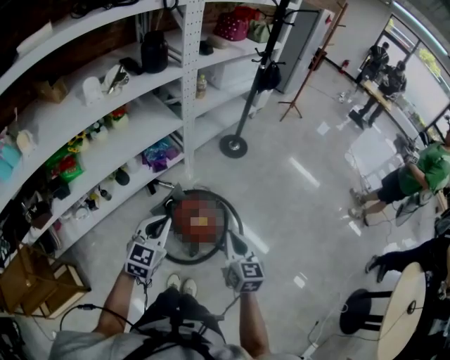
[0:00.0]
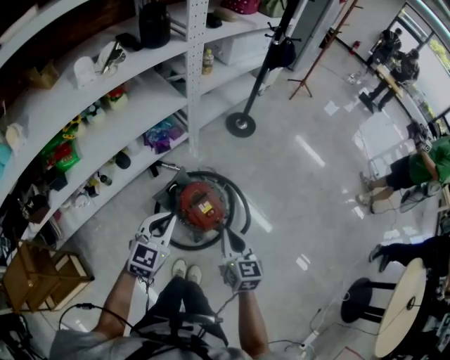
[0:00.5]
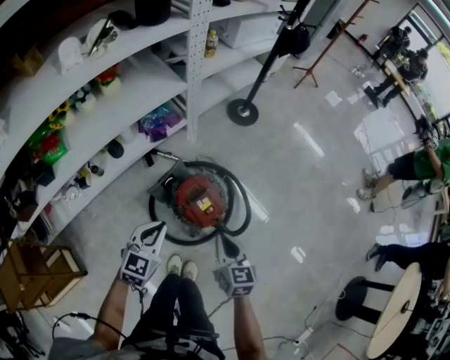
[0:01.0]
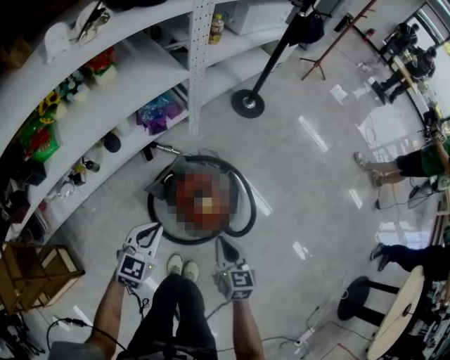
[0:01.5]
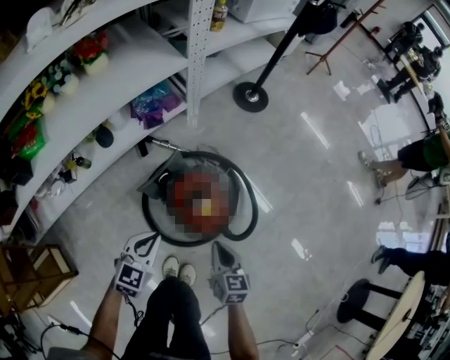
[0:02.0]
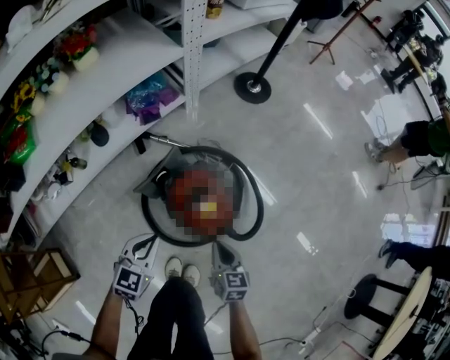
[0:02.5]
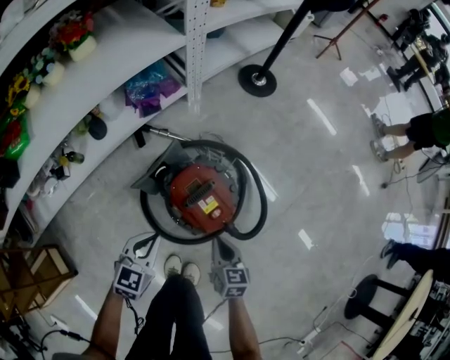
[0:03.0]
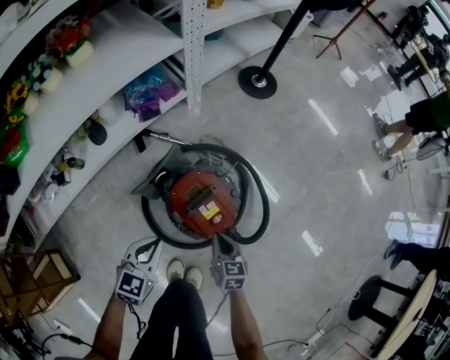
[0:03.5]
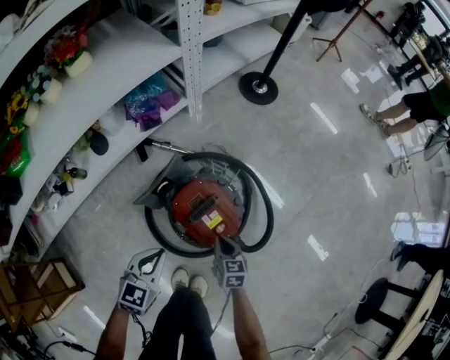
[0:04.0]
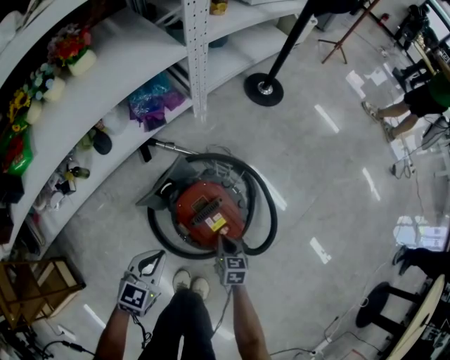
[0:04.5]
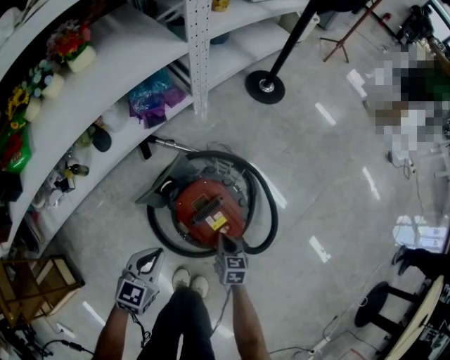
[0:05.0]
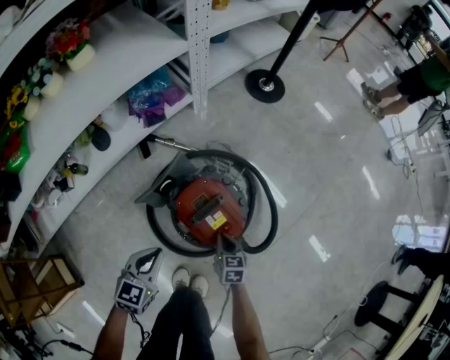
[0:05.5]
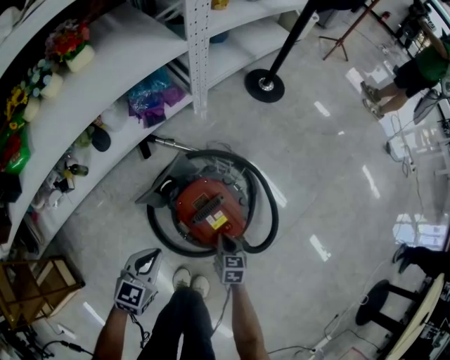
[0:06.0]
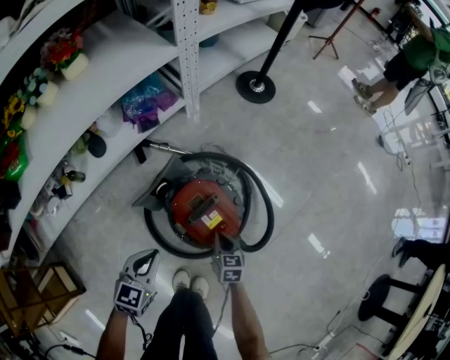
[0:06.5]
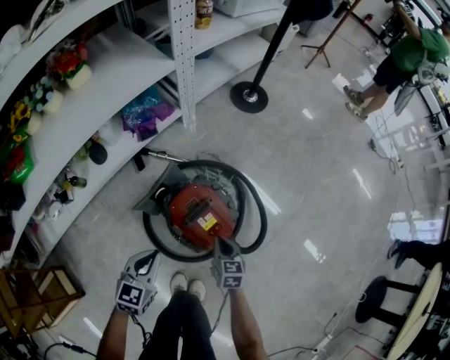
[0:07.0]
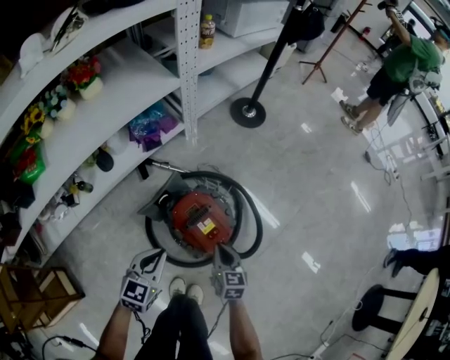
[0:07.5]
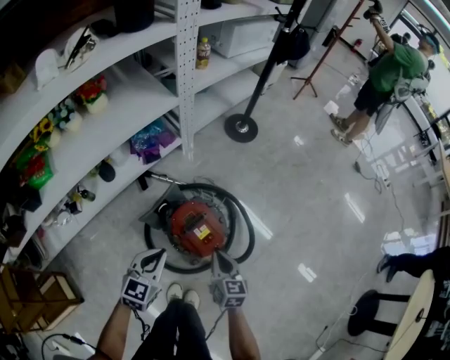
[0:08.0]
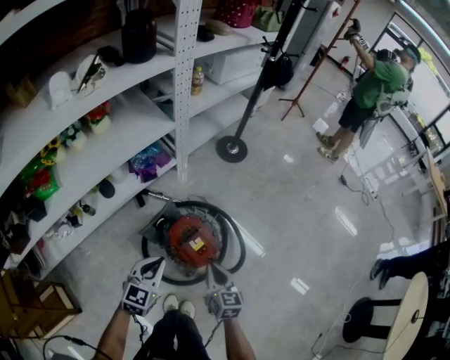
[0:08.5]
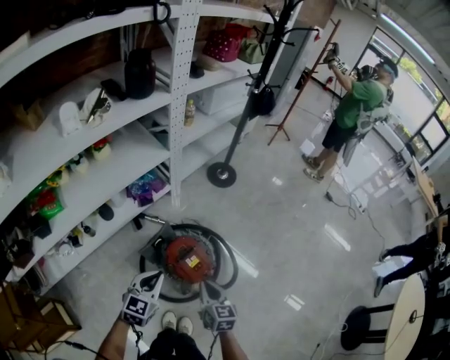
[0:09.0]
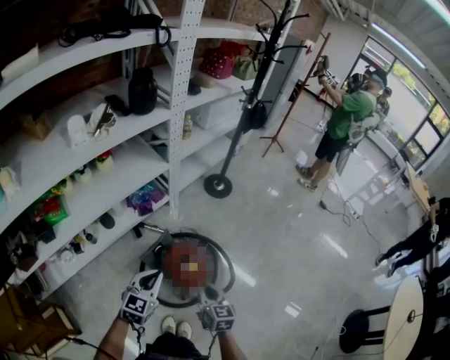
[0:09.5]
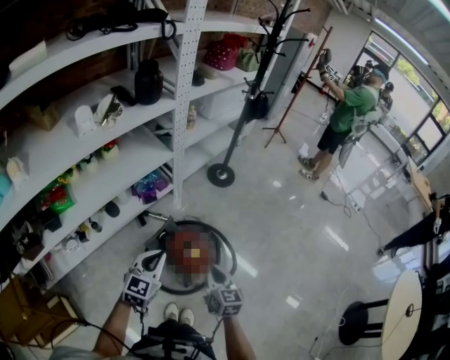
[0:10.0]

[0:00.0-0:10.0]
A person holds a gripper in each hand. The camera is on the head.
0:00.0 to 0:02.0: Both grippers move downward, roughly 30 cm.
0:02.0 to 0:04.0: The left gripper is displaced downward by approximately 10 cm. Meanwhile the right gripper goes approximately 20 cm downward.
0:04.0 to 0:06.0: The grippers move only a little.
0:06.0 to 0:08.0: The left gripper is displaced upward by about 15 cm, while the right gripper heads upward, covering some 25 cm.
0:08.0 to 0:10.0: The grippers both shift upward by some 20 cm.

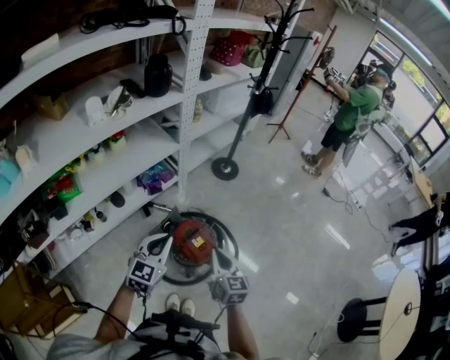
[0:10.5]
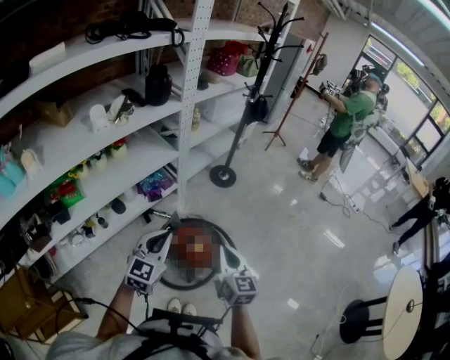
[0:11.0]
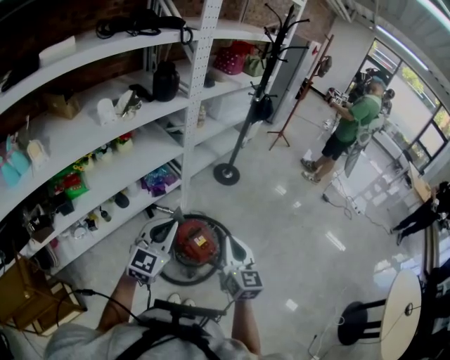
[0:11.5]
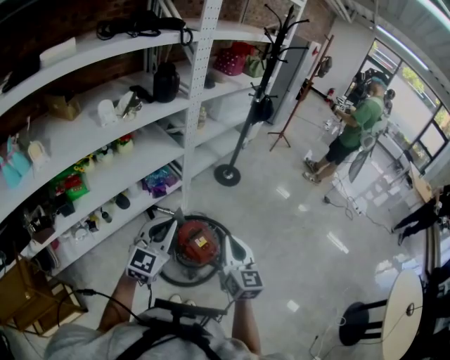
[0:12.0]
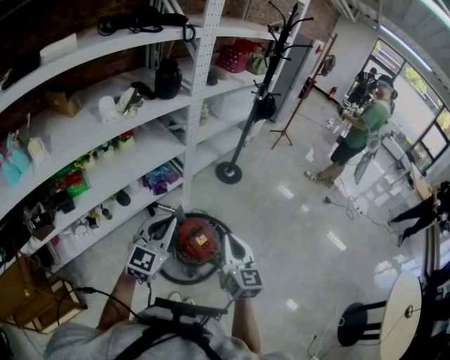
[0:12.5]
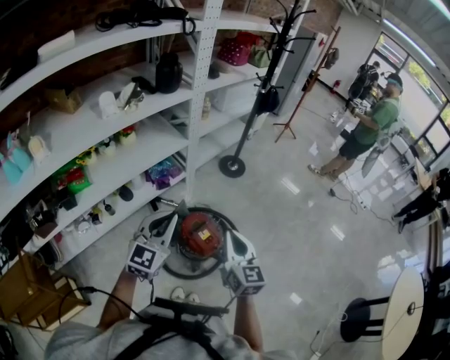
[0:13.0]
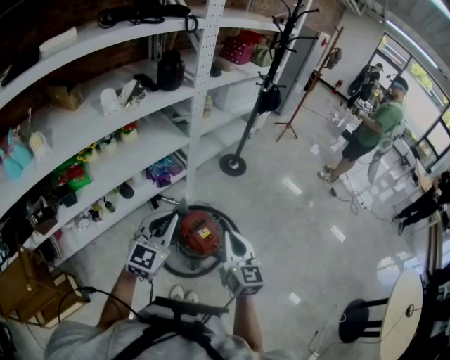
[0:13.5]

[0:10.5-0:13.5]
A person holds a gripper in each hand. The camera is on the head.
0:10.5 to 0:12.0: Both grippers move upward, roughly 10 cm.
0:12.0 to 0:13.5: The grippers make only small movements.

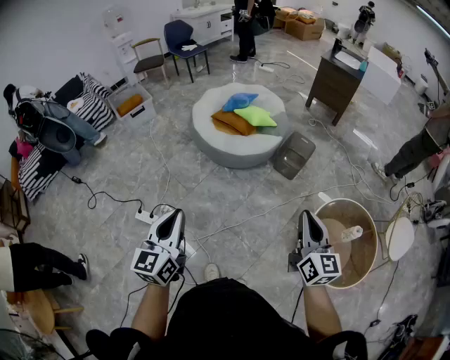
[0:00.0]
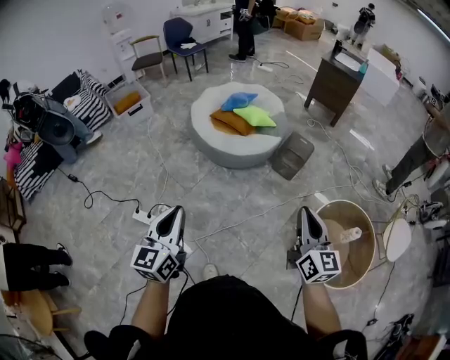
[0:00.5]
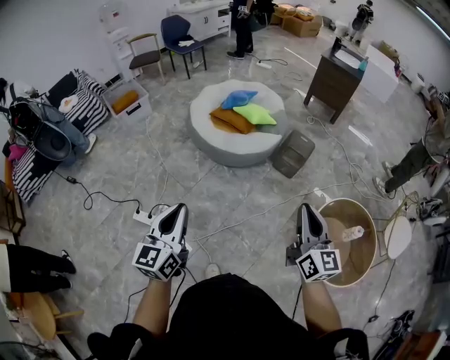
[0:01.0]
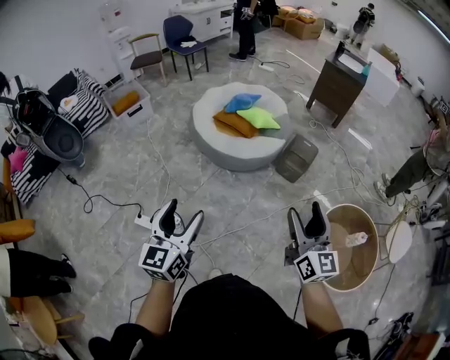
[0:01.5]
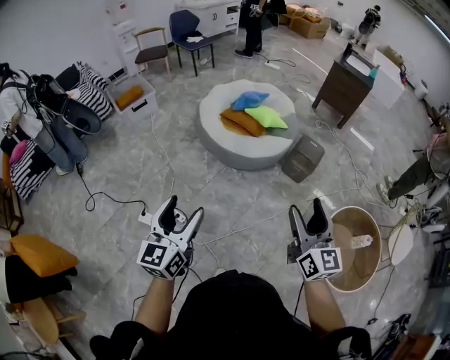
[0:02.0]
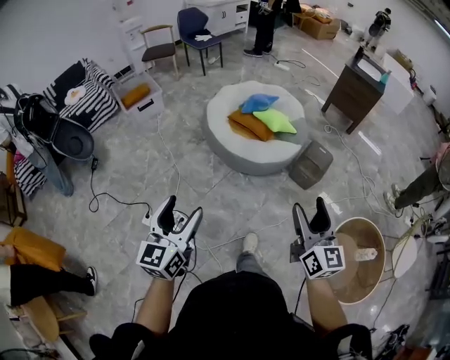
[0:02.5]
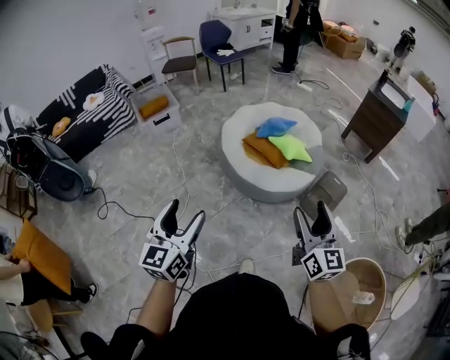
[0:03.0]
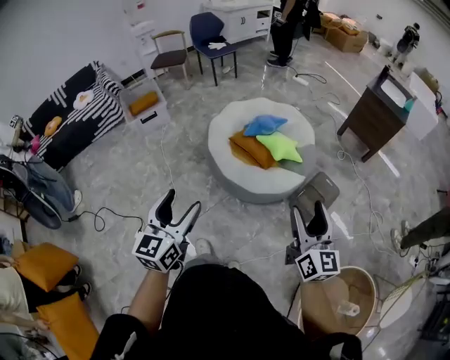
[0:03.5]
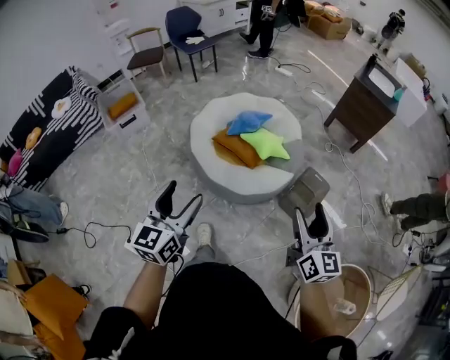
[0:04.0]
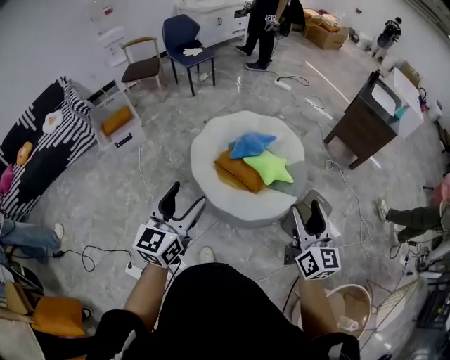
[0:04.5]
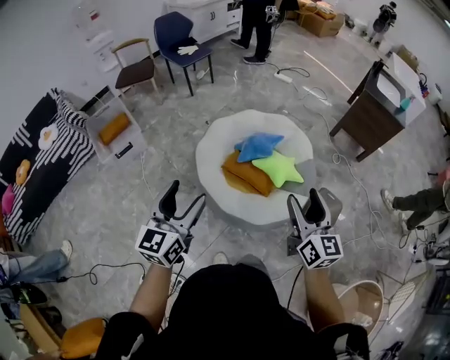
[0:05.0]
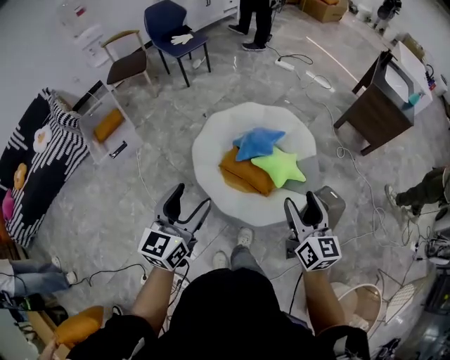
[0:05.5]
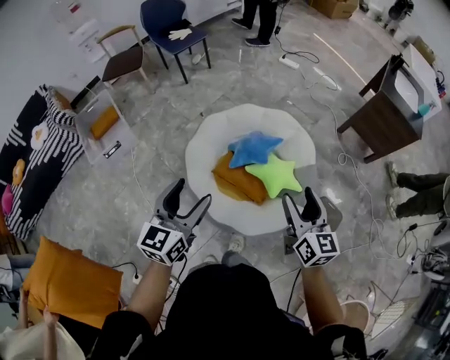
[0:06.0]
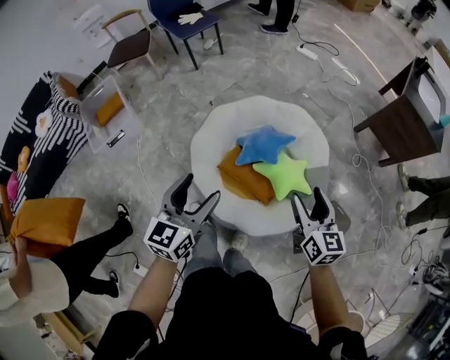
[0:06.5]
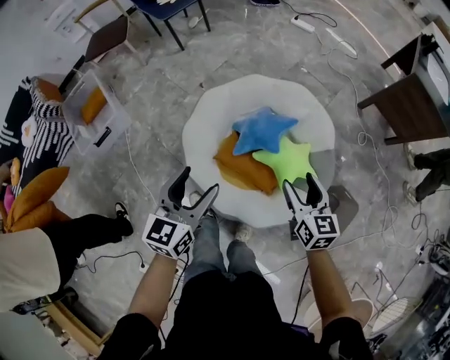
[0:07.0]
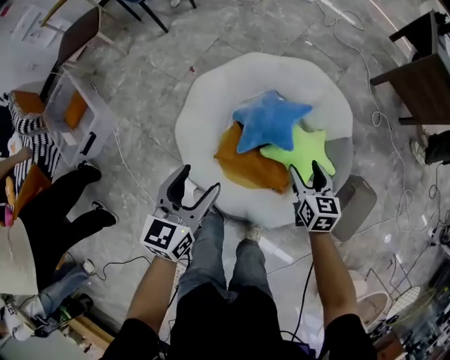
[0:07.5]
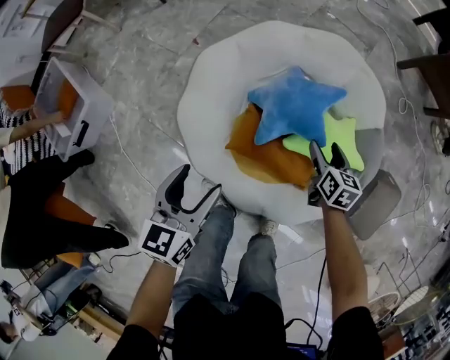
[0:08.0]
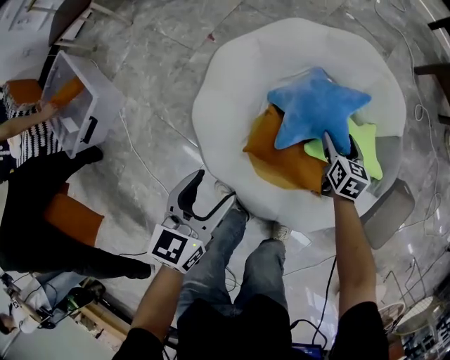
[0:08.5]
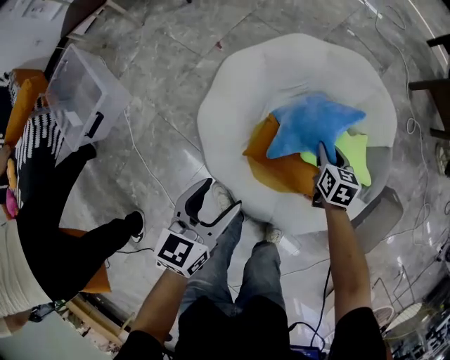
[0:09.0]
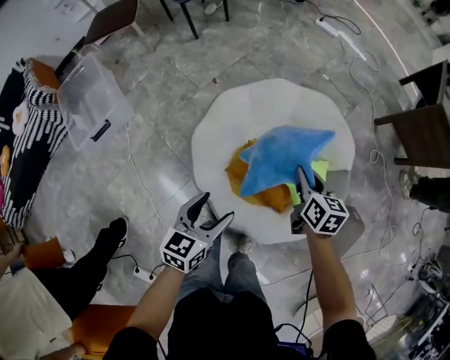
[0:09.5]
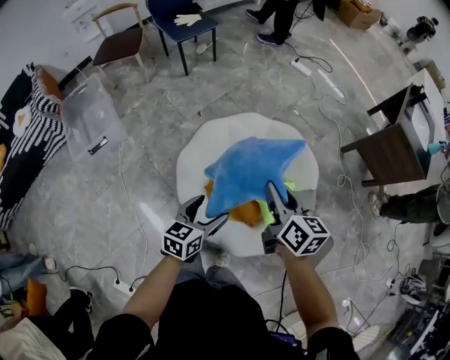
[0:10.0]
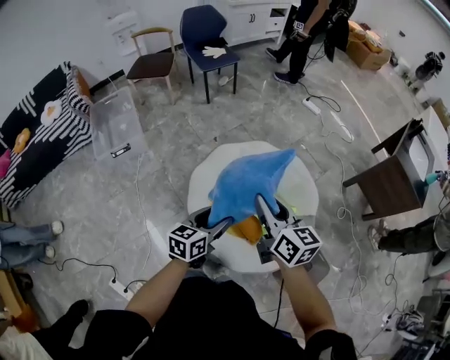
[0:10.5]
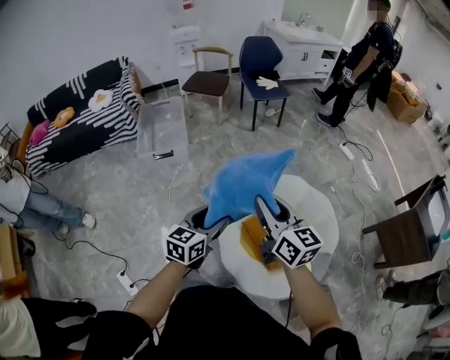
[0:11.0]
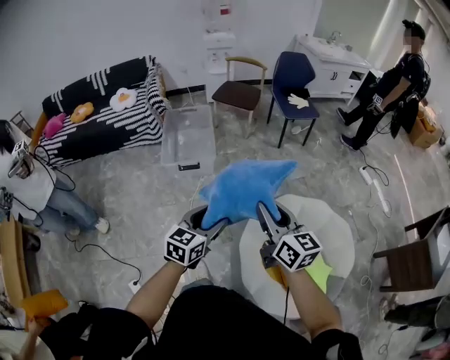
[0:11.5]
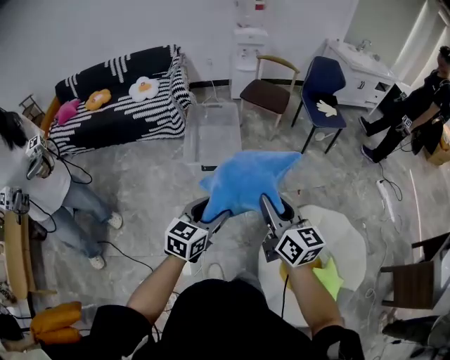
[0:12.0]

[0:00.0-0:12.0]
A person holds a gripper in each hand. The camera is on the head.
0:00.0 to 0:02.0: Both grippers travel together to the left and forward, some 15 cm. The right gripper opens its fingers, while the left gripper opens its fingers.
0:02.0 to 0:04.0: Both grippers move forward, some 35 cm.
0:04.0 to 0:06.0: The two grippers go roughly 40 cm forward.
0:06.0 to 0:08.0: The two grippers go about 50 cm downward and forward. The left gripper rotates roughly 20 degrees. Meanwhile the right gripper points its fingers roughly 30 degrees further downward.
0:08.0 to 0:10.0: The right gripper heads upward, covering about 40 cm, turns by some 30 degrees, and closes its fingers. The left gripper goes roughly 20 cm upward and to the right.
0:10.0 to 0:12.0: The pair of grippers is taken approximately 50 cm. The left gripper rotates roughly 40 degrees. The right gripper turns by approximately 50 degrees.

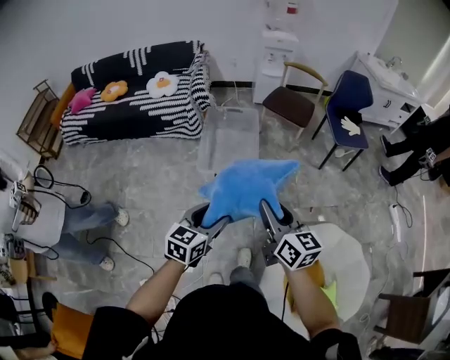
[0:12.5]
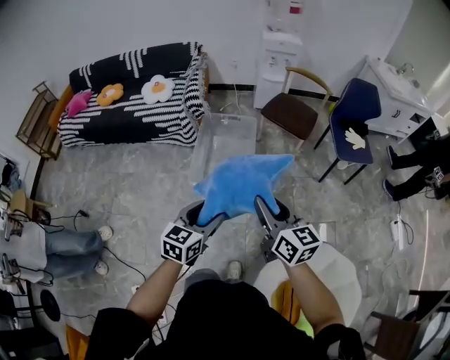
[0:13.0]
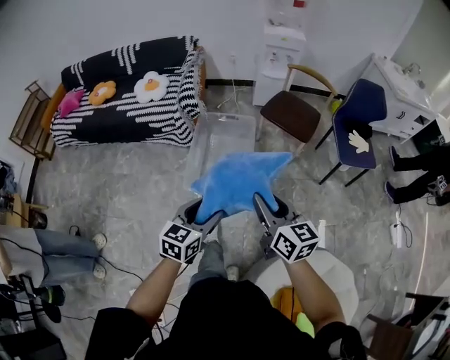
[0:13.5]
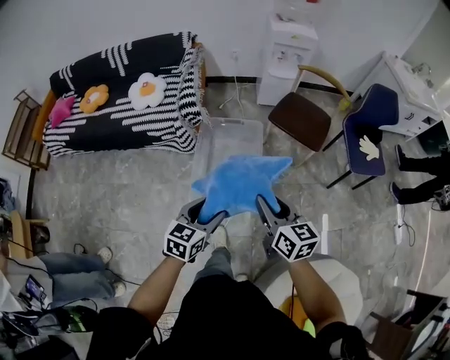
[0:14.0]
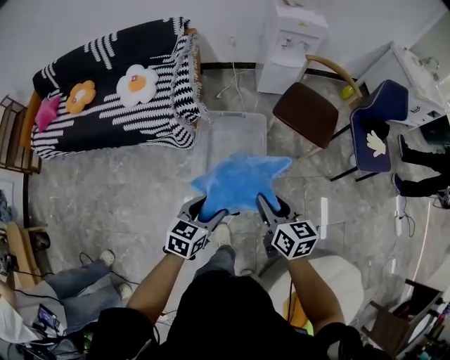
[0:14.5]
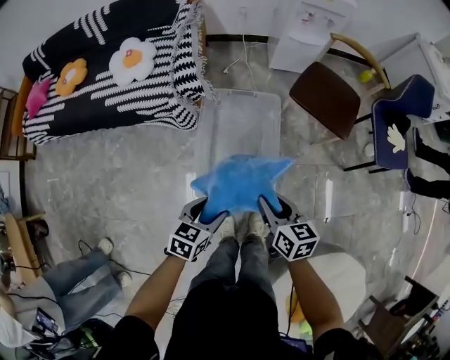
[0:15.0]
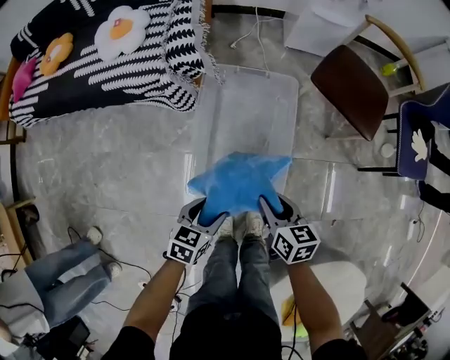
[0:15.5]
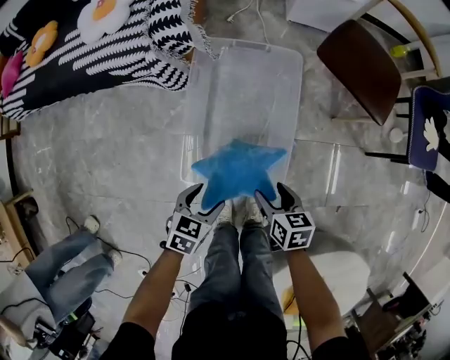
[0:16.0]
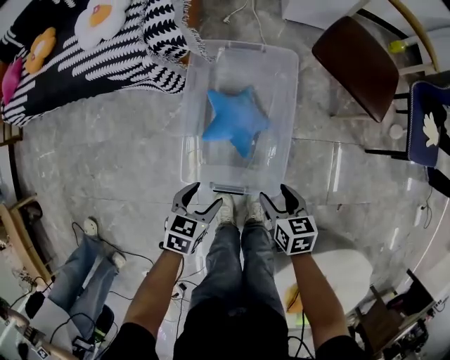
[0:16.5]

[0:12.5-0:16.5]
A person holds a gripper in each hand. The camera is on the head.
0:12.5 to 0:14.5: Both grippers are carried forward, roughly 40 cm.
0:14.5 to 0:16.5: Both grippers travel together downward, some 30 cm. The right gripper changes its angle by some 30 degrees, and opens.
